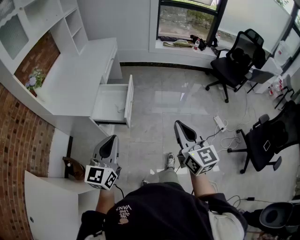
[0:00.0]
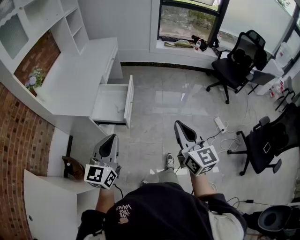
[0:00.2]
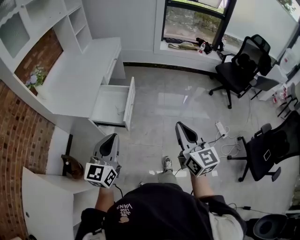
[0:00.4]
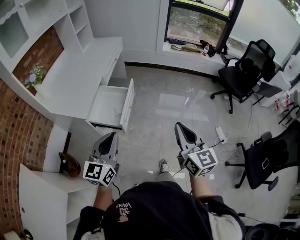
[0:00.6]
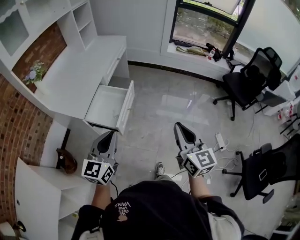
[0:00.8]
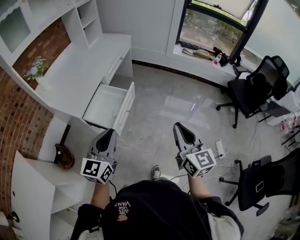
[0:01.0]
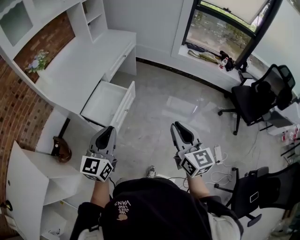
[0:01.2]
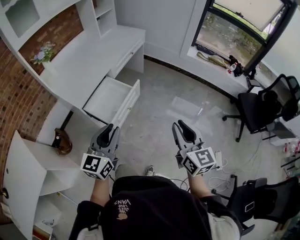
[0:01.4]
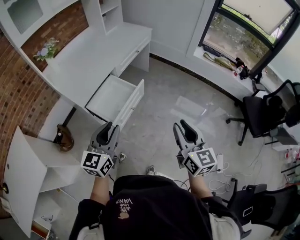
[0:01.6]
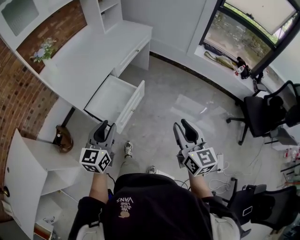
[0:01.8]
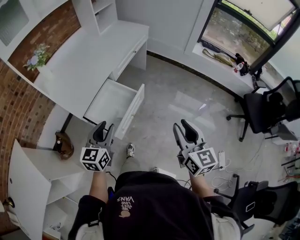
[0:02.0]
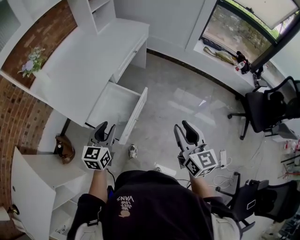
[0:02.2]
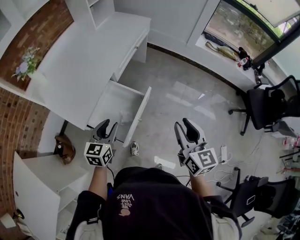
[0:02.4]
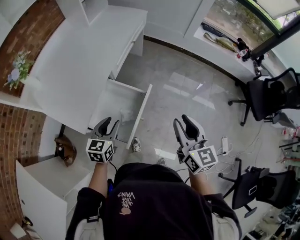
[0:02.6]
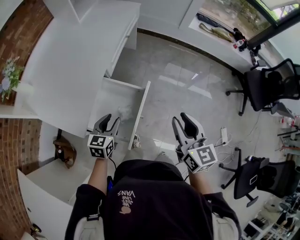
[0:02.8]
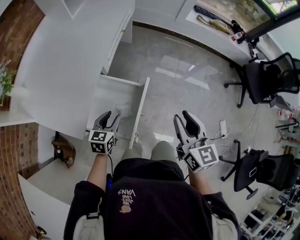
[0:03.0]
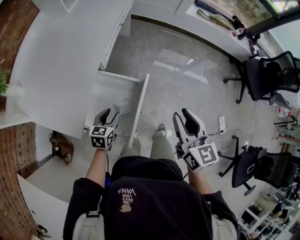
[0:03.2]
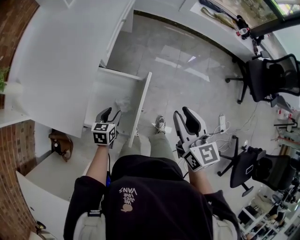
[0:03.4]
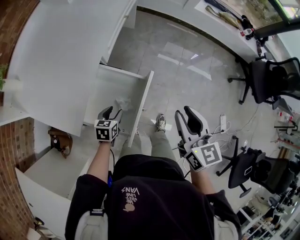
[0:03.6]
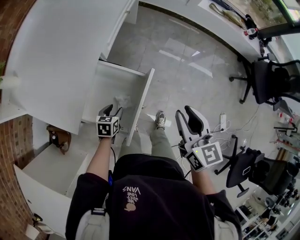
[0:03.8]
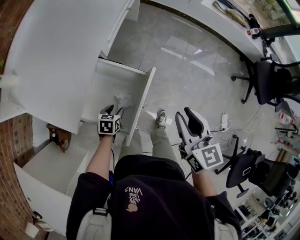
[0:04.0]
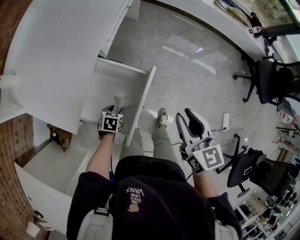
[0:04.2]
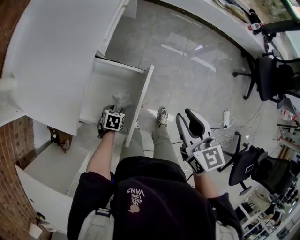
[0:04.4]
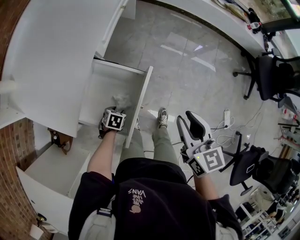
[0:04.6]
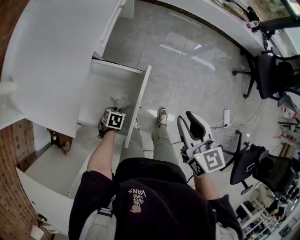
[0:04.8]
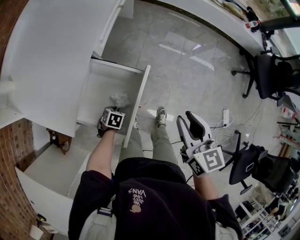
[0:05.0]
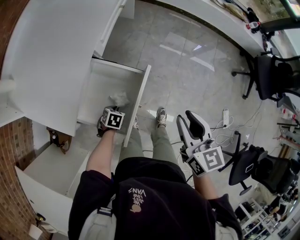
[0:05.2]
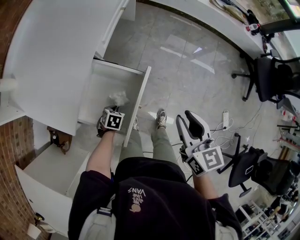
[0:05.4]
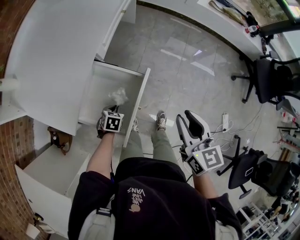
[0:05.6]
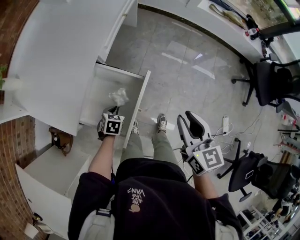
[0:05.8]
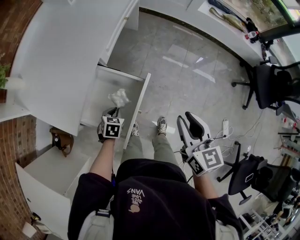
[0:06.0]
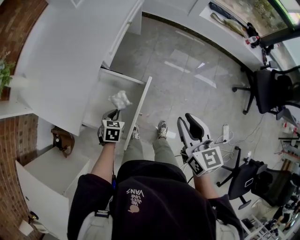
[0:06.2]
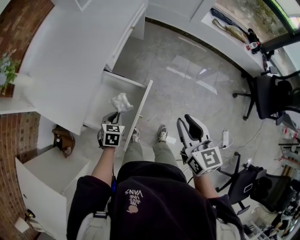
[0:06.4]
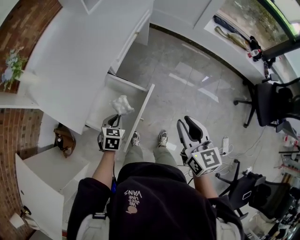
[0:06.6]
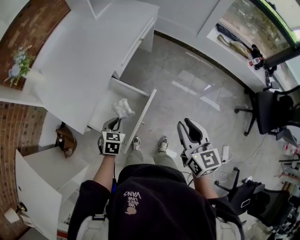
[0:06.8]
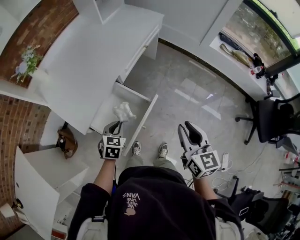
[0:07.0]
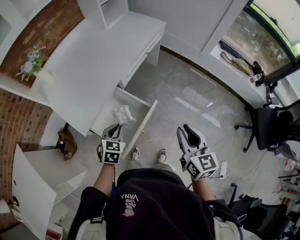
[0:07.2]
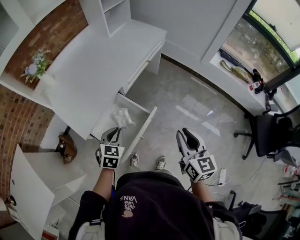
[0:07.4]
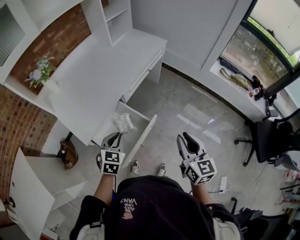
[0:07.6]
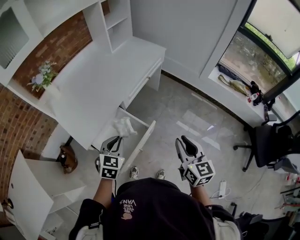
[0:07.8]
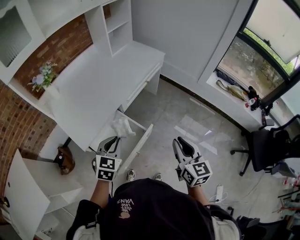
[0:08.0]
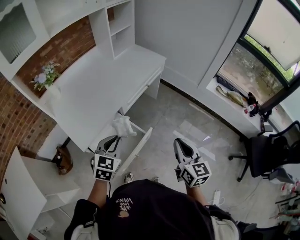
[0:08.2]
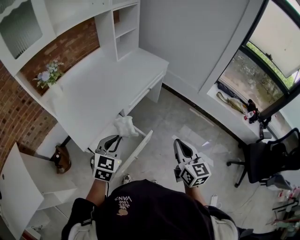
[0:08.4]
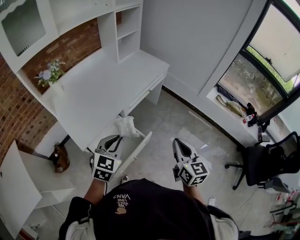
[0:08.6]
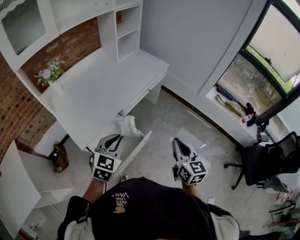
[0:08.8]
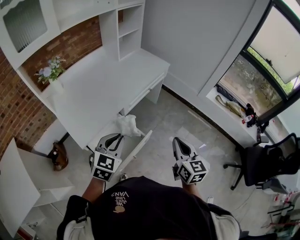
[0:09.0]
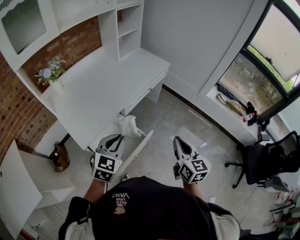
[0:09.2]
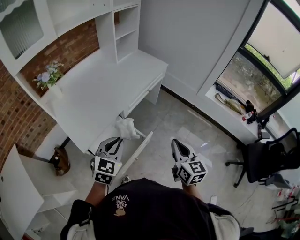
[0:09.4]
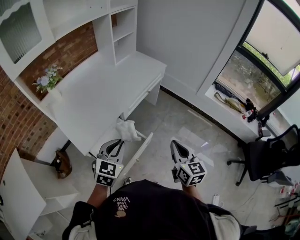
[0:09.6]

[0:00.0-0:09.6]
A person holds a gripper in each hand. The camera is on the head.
0:00.0 to 0:01.6: The two grippers go roughly 25 cm forward and to the right. The left gripper rotates roughly 20 degrees, and opens. The right gripper swivels roughly 20 degrees, and opens its fingers.
0:01.6 to 0:03.2: The right gripper shifts approximately 30 cm forward, to the left and downward, and rotates some 20 degrees; the left gripper shifts some 40 cm downward, forward and to the left, and tilts its fingers some 30 degrees downward.
0:03.2 to 0:04.8: The right gripper goes approximately 5 cm downward. Meanwhile the left gripper goes roughly 20 cm downward, and tips its fingers downward by some 30 degrees.
0:04.8 to 0:06.4: The left gripper moves upward, approximately 15 cm, and changes its angle by approximately 30 degrees.
0:06.4 to 0:08.0: The left gripper heads upward, covering some 25 cm, and swivels about 30 degrees. Meanwhile the right gripper is displaced upward by roughly 5 cm.
0:08.0 to 0:09.6: The left gripper goes about 5 cm upward.

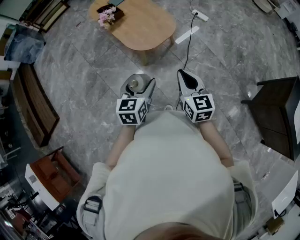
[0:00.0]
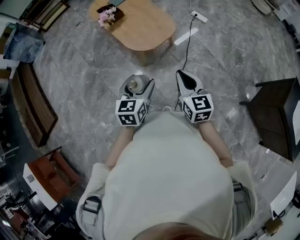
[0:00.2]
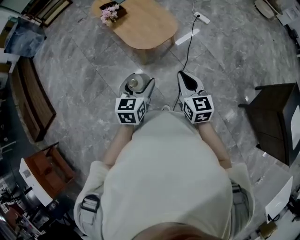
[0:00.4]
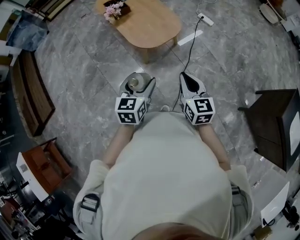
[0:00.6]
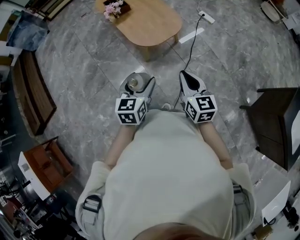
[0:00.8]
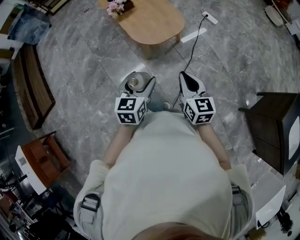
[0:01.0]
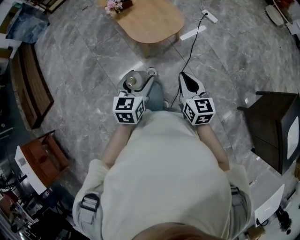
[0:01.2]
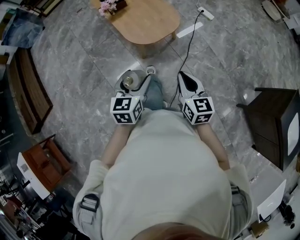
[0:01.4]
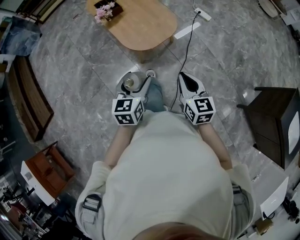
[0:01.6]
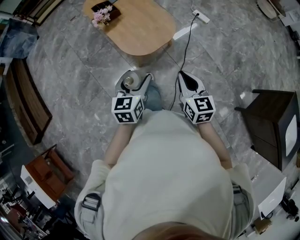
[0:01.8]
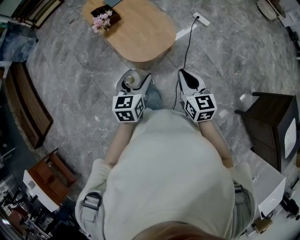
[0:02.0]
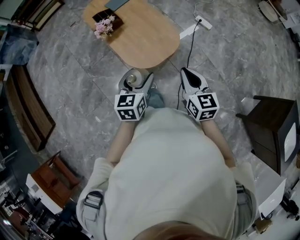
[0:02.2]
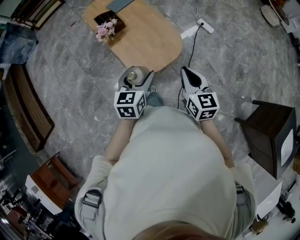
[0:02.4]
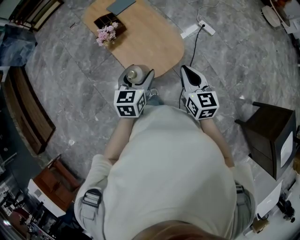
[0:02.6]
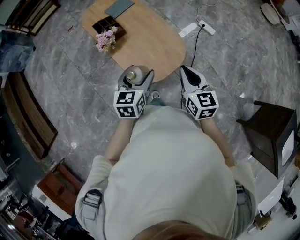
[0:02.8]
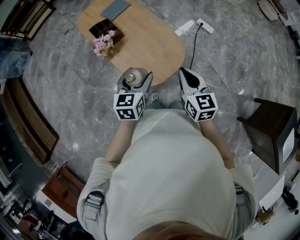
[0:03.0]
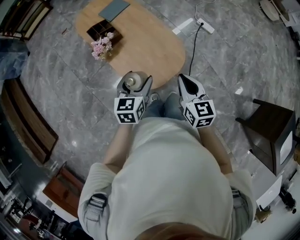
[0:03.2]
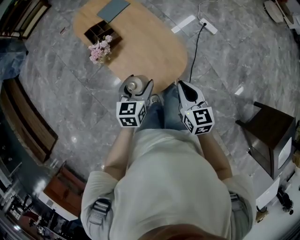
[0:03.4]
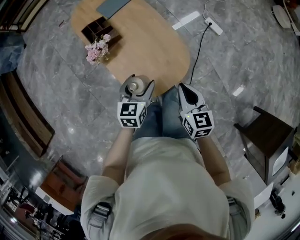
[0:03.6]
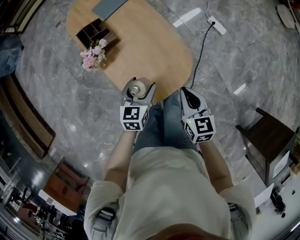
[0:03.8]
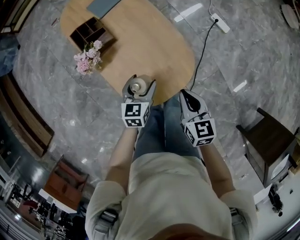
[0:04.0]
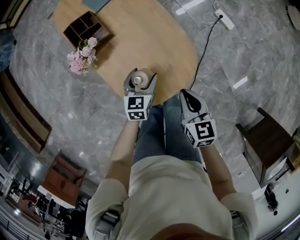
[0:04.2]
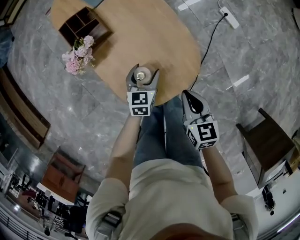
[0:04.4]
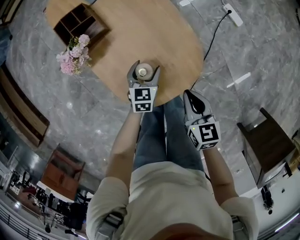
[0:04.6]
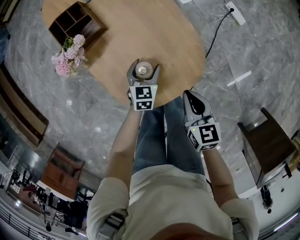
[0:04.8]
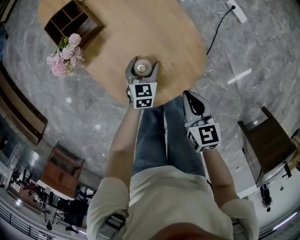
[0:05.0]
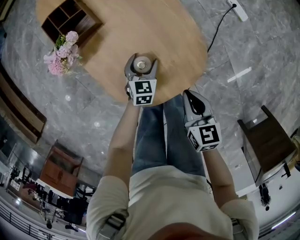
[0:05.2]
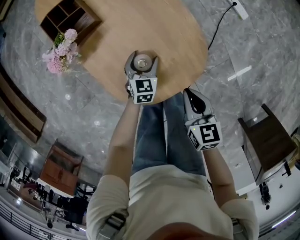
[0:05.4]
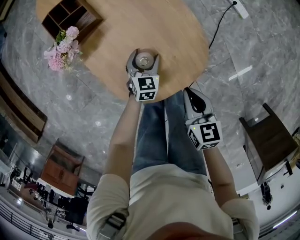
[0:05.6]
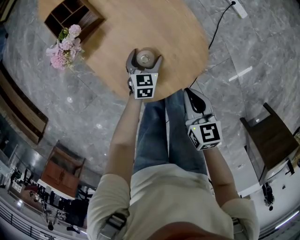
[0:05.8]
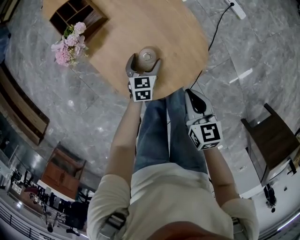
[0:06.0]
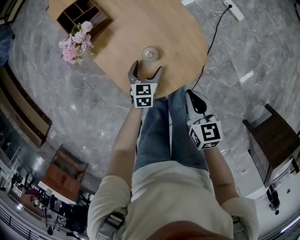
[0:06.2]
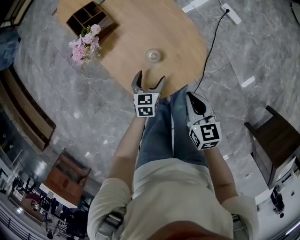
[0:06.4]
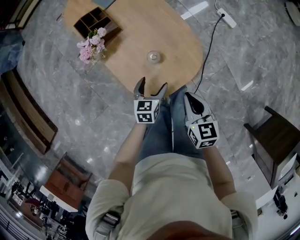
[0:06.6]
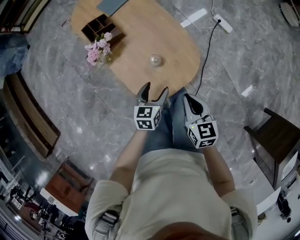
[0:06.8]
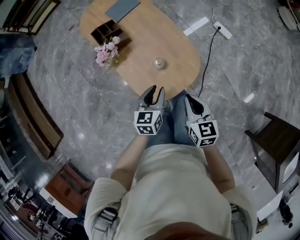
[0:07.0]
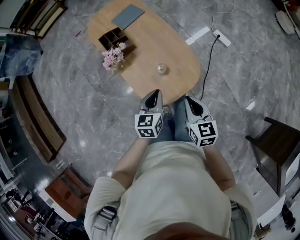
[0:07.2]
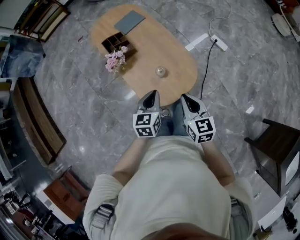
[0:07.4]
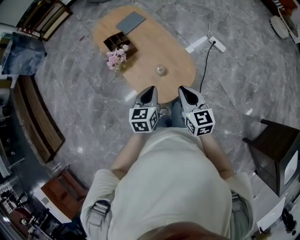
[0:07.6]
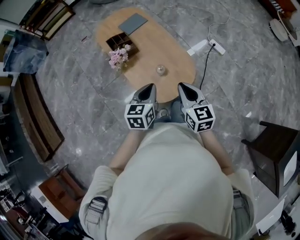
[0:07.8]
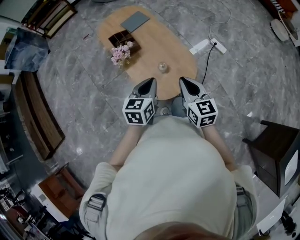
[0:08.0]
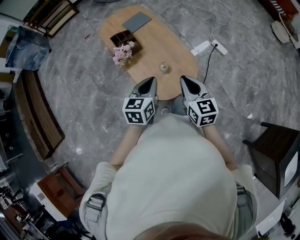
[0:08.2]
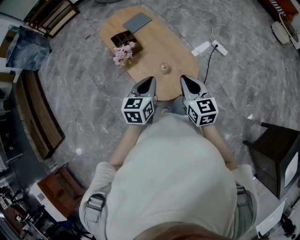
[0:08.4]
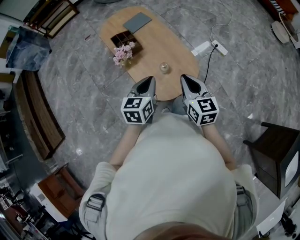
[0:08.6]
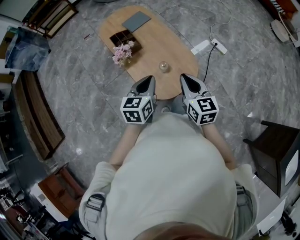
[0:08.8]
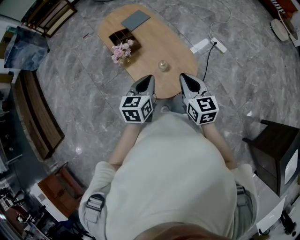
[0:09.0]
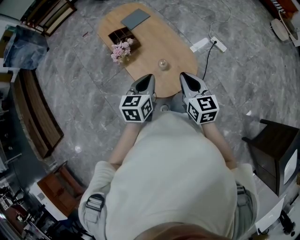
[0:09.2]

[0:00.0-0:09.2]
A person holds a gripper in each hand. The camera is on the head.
0:00.0 to 0:01.6: The left gripper travels forward by some 5 cm; the right gripper changes place by some 5 cm.
0:01.6 to 0:03.0: The grippers both shift forward by some 30 cm.
0:03.0 to 0:04.6: The two grippers go some 35 cm downward and forward. The right gripper turns by roughly 20 degrees.
0:04.6 to 0:06.2: Both grippers move backward, some 5 cm.
0:06.2 to 0:07.6: The right gripper goes approximately 25 cm upward, and swivels some 20 degrees; the left gripper is displaced upward by about 35 cm, and closes.
0:07.6 to 0:09.2: The left gripper goes approximately 5 cm upward.

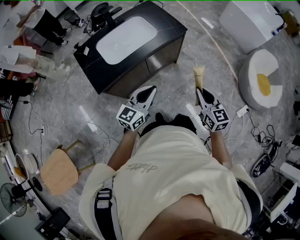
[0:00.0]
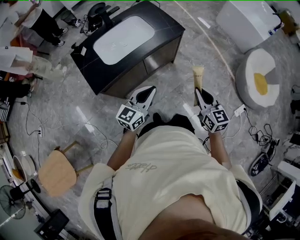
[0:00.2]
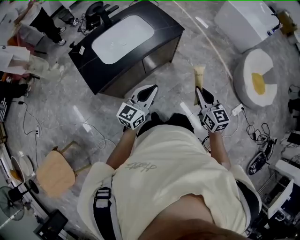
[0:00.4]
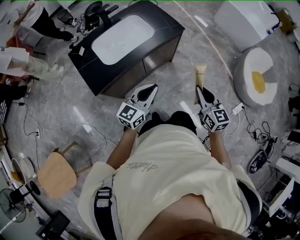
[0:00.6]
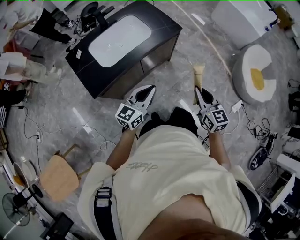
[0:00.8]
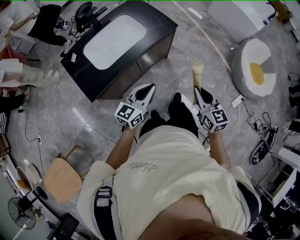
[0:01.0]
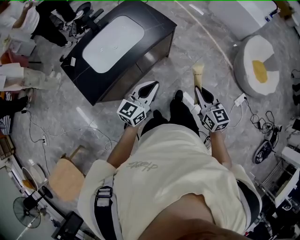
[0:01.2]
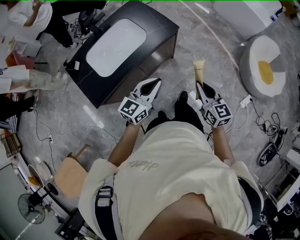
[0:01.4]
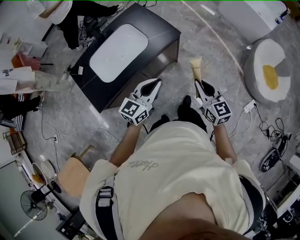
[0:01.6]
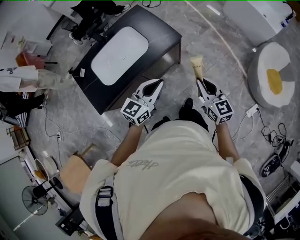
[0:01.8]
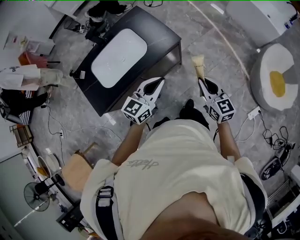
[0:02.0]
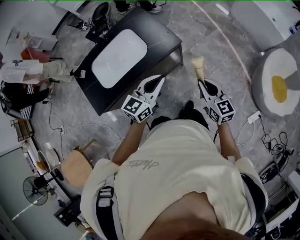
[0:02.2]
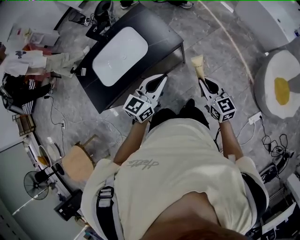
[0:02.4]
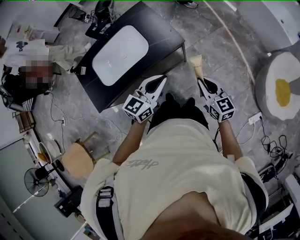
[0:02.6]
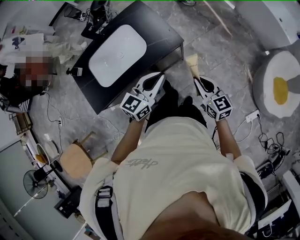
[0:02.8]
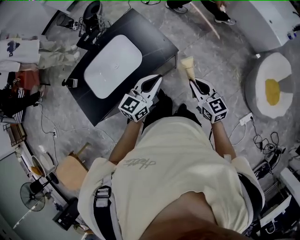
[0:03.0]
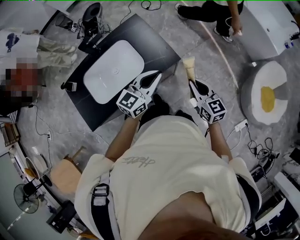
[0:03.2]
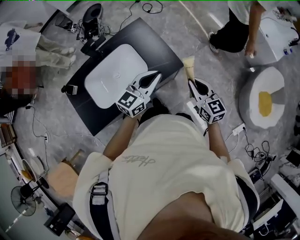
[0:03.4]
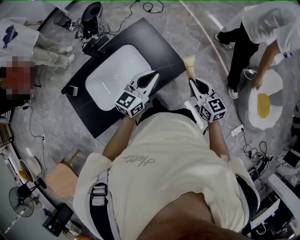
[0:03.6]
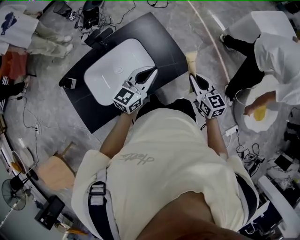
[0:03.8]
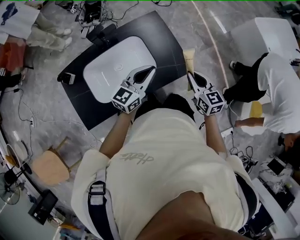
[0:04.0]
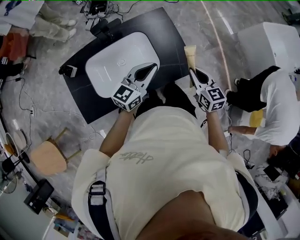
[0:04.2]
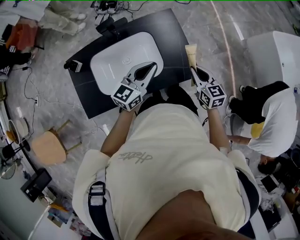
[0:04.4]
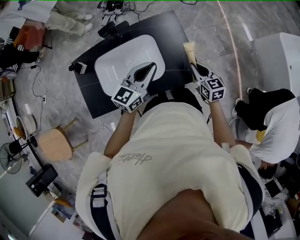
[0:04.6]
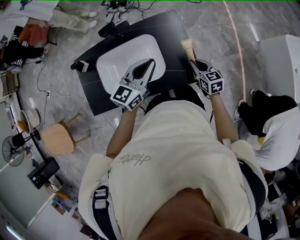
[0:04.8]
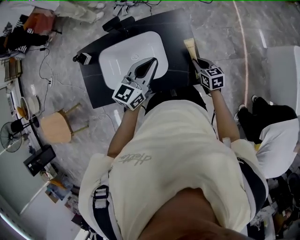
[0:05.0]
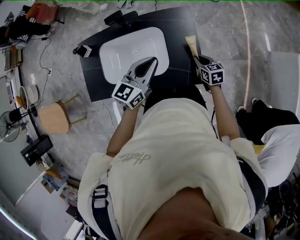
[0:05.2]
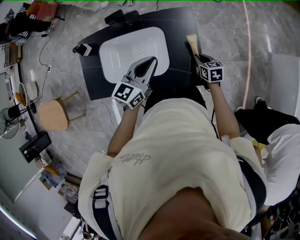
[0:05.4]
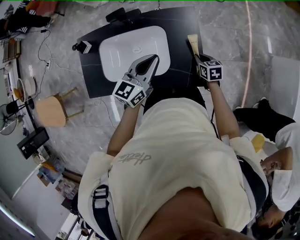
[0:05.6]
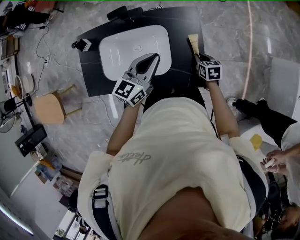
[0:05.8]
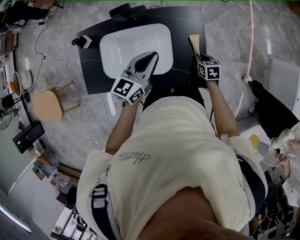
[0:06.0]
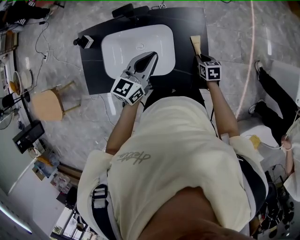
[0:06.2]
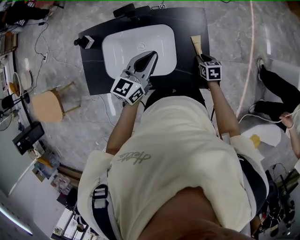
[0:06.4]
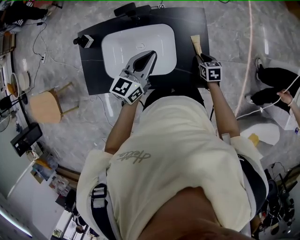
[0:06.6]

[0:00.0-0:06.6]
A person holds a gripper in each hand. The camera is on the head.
0:00.0 to 0:01.6: Both grippers move forward, approximately 15 cm.
0:01.6 to 0:03.2: Both grippers move forward, roughly 25 cm.
0:03.2 to 0:05.0: The right gripper changes place by some 35 cm, and rotates some 30 degrees, while the left gripper shifts by about 25 cm, and swivels about 30 degrees.
0:05.0 to 0:06.6: The left gripper is displaced to the left by roughly 10 cm, while the right gripper is displaced downward by some 5 cm.
